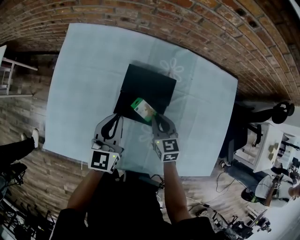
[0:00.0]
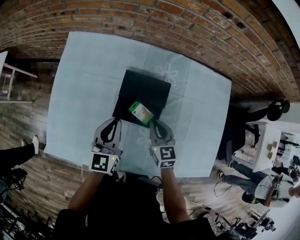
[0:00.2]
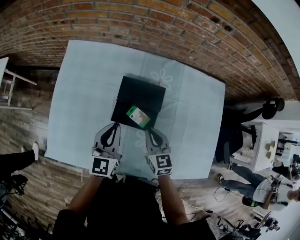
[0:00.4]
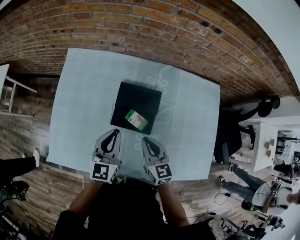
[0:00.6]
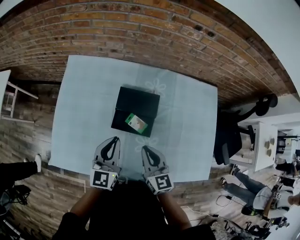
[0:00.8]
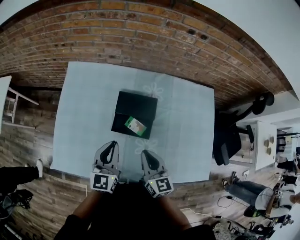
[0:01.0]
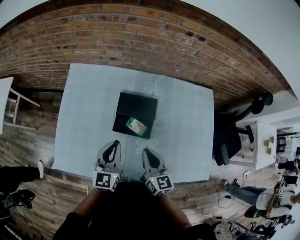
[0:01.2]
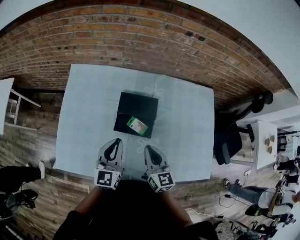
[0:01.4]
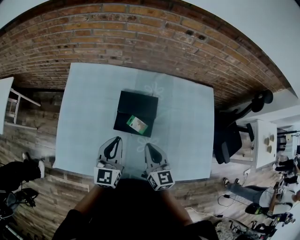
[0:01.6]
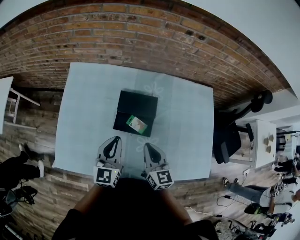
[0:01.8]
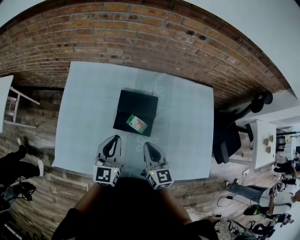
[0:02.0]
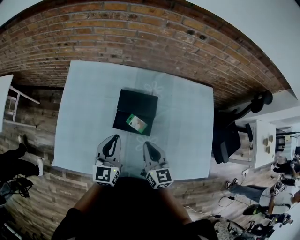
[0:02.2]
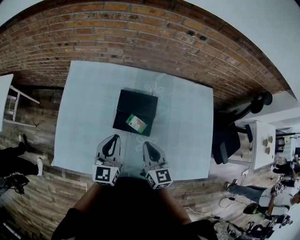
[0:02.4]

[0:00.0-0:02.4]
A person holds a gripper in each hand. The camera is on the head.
0.0 to 1.2 s: The left gripper is displaced upward and backward by approximately 10 cm, while the right gripper goes approximately 20 cm upward and backward, and changes its angle by about 20 degrees.
1.2 to 2.4 s: The grippers make only small movements.

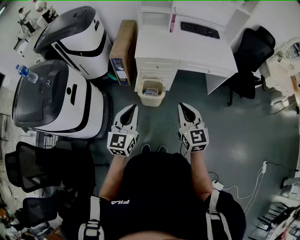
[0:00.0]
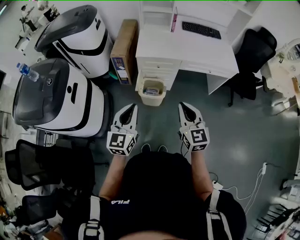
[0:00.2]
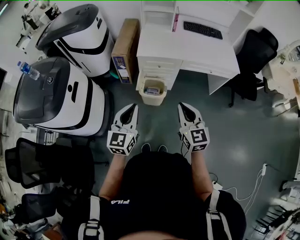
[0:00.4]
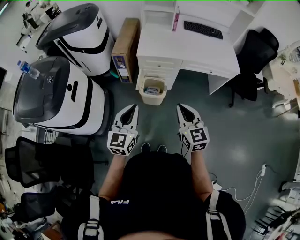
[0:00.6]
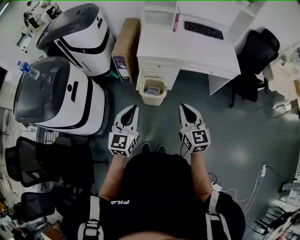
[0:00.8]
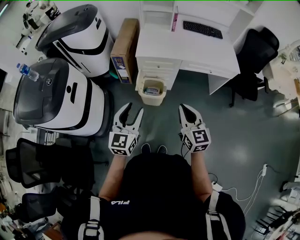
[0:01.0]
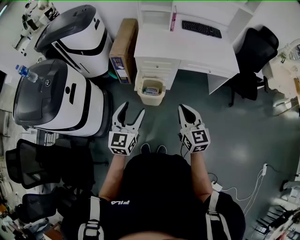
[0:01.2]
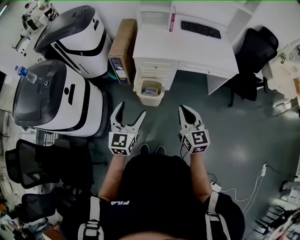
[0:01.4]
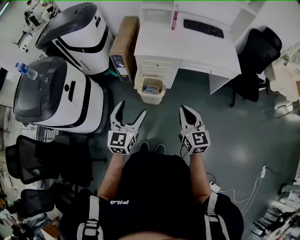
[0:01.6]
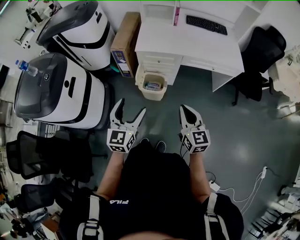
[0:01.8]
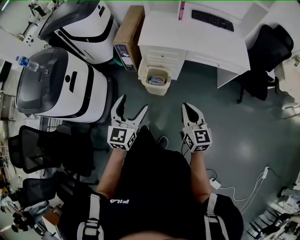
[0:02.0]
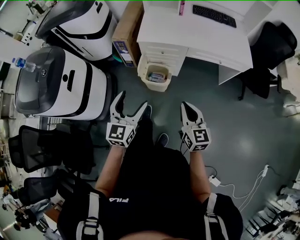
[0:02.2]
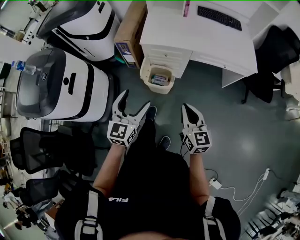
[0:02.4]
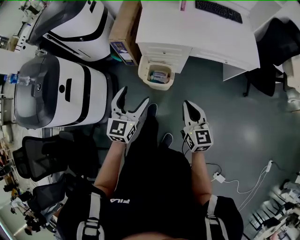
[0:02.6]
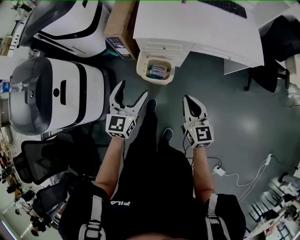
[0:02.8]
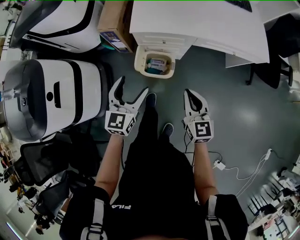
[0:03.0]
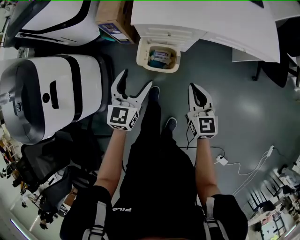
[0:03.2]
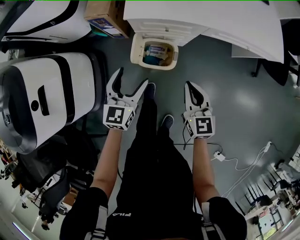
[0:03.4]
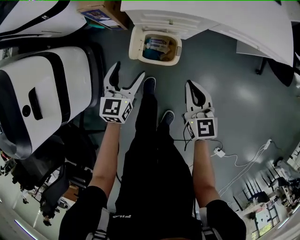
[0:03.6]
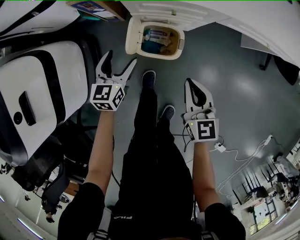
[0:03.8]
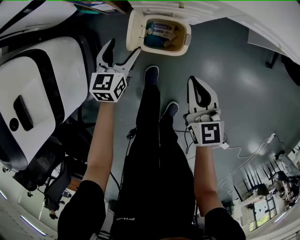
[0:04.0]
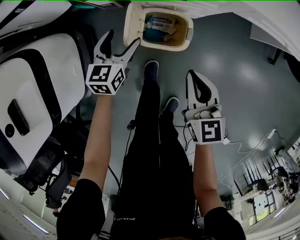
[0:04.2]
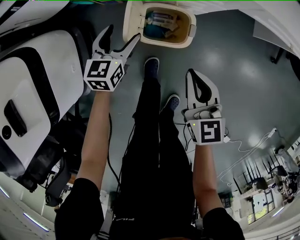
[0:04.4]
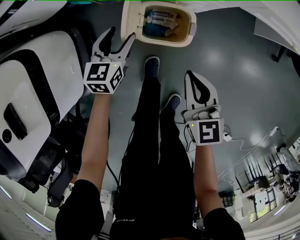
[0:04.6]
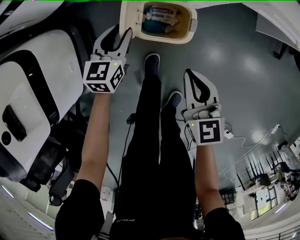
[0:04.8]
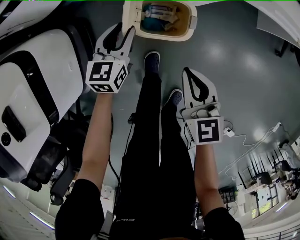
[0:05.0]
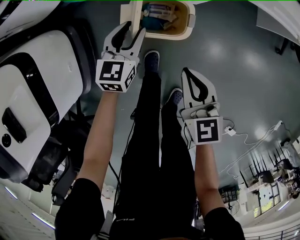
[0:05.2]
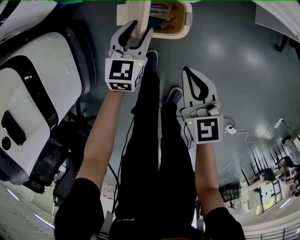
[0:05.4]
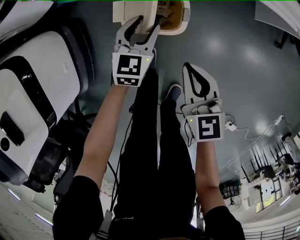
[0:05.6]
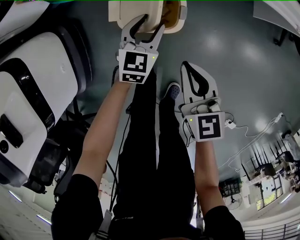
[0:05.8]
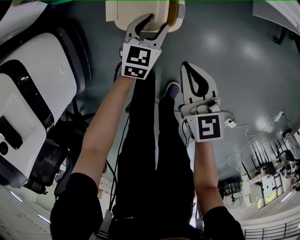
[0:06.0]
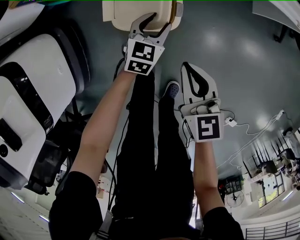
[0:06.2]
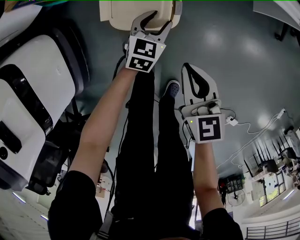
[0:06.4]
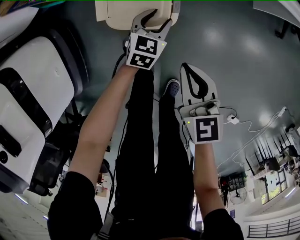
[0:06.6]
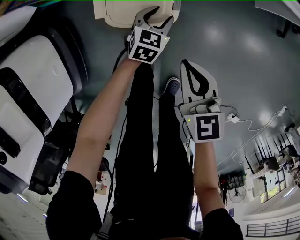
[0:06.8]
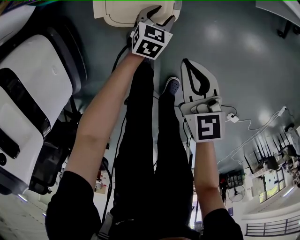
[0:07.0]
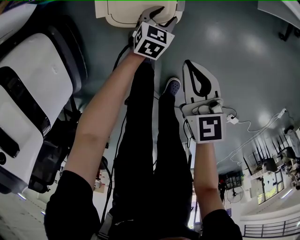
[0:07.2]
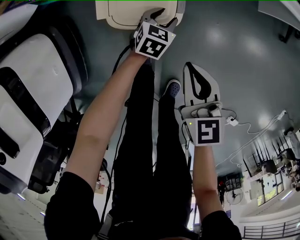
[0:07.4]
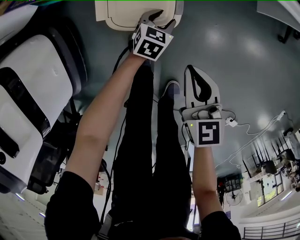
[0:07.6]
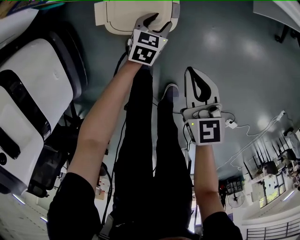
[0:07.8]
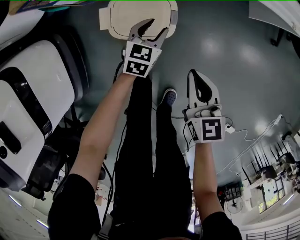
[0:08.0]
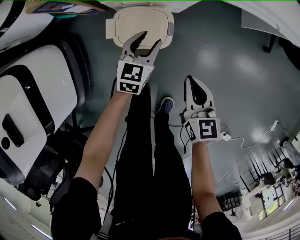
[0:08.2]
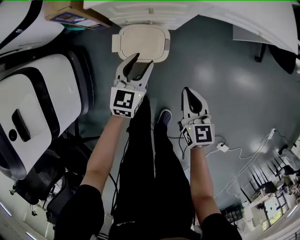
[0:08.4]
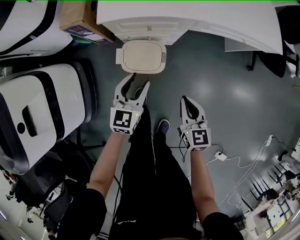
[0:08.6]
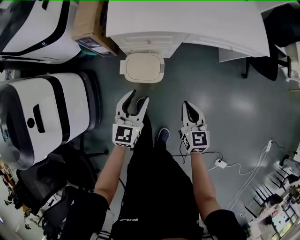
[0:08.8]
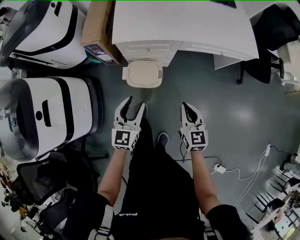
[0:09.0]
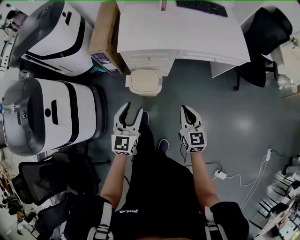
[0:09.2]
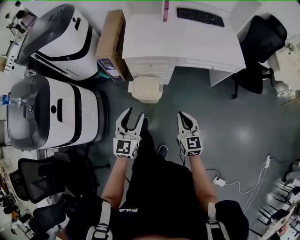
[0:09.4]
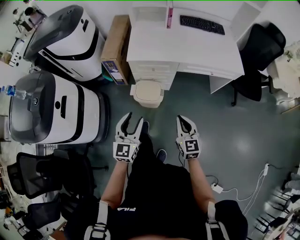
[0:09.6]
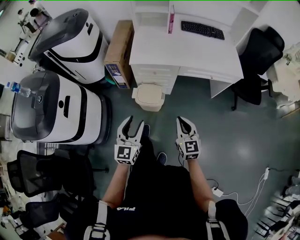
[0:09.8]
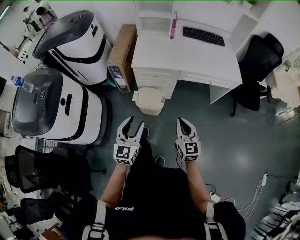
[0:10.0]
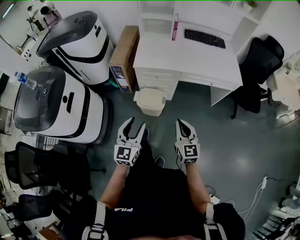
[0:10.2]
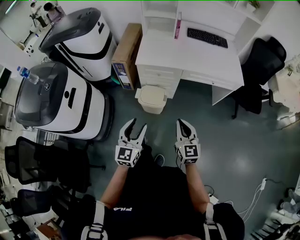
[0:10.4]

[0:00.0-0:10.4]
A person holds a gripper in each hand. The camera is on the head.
0.0 to 1.4 s: The left gripper opens its fingers.
1.4 to 3.0 s: The grippers both shift forward and downward by approximately 30 cm.
3.0 to 4.4 s: Both grippers travel together downward, some 35 cm.
4.4 to 6.0 s: The left gripper is displaced to the right and downward by about 20 cm, and closes its fingers. Meanwhile the right gripper heads downward, covering roughly 5 cm.
6.0 to 7.4 s: The left gripper shifts some 15 cm downward and to the right. Meanwhile the right gripper is displaced downward by roughly 5 cm.
7.4 to 9.0 s: The right gripper is displaced upward by some 30 cm. Meanwhile the left gripper heads upward, covering roughly 50 cm, and tilts its fingers roughly 30 degrees upward.
9.0 to 10.4 s: The right gripper goes approximately 25 cm upward and backward. Meanwhile the left gripper goes roughly 25 cm backward and upward.

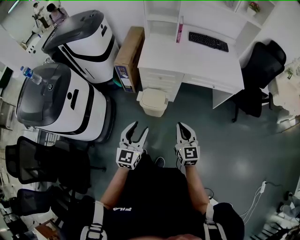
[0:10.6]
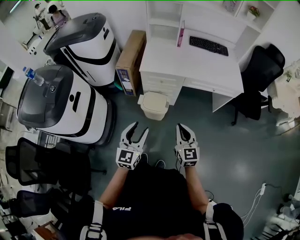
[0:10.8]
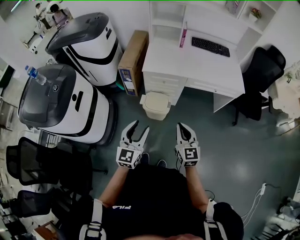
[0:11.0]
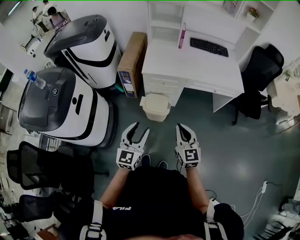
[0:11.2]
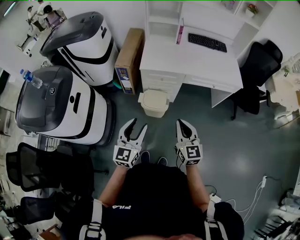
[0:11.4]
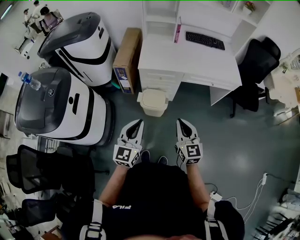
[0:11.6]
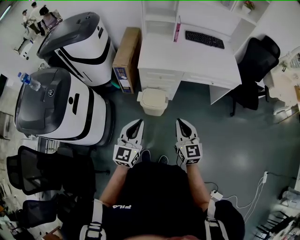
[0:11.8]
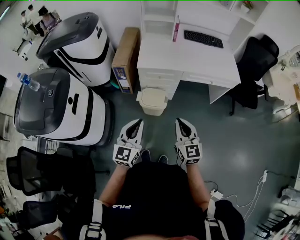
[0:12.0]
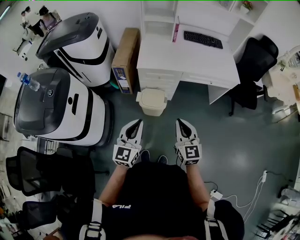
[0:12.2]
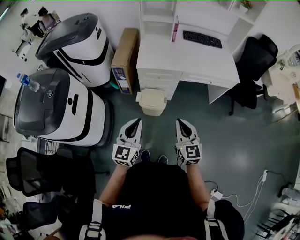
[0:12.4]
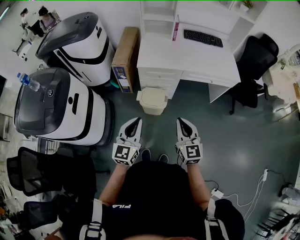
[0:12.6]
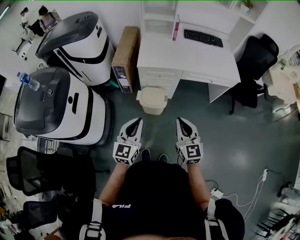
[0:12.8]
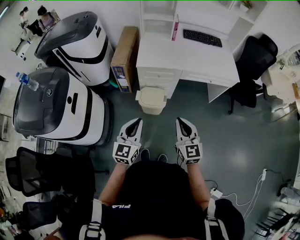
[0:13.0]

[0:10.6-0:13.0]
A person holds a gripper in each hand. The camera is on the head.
10.6 to 11.8 s: The two grippers go approximately 5 cm to the left. The left gripper closes up.
11.8 to 13.0 s: The grippers move only a little.

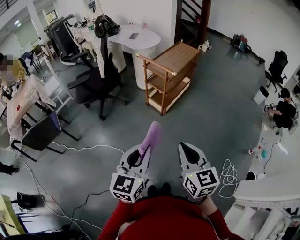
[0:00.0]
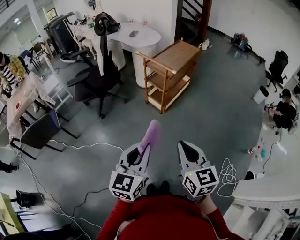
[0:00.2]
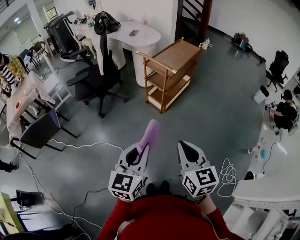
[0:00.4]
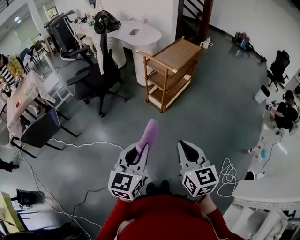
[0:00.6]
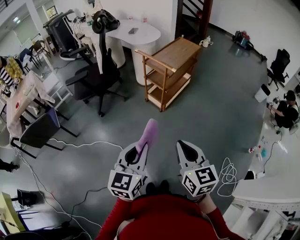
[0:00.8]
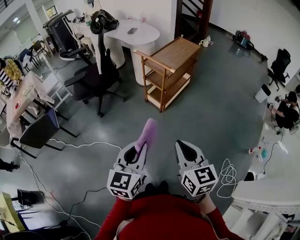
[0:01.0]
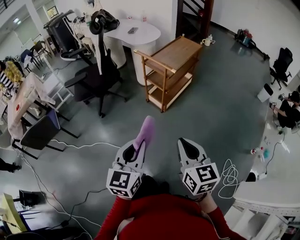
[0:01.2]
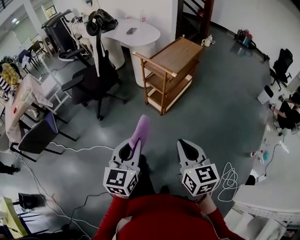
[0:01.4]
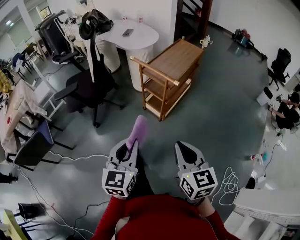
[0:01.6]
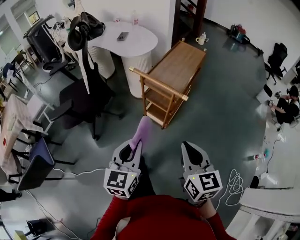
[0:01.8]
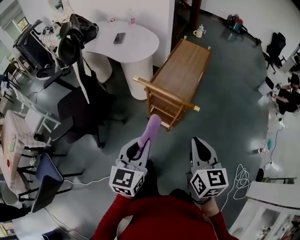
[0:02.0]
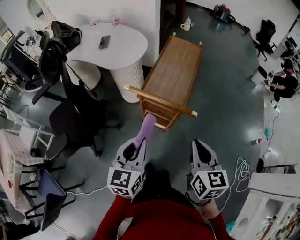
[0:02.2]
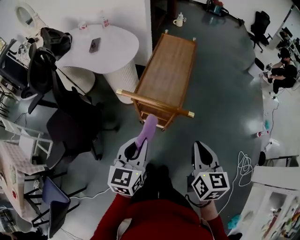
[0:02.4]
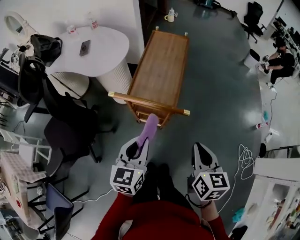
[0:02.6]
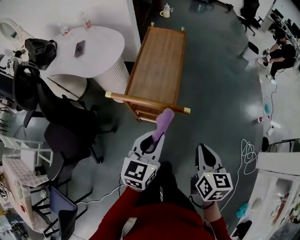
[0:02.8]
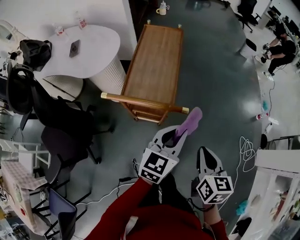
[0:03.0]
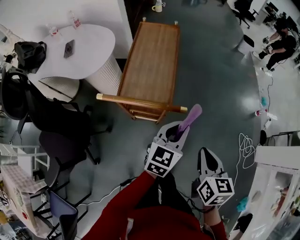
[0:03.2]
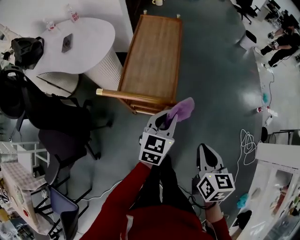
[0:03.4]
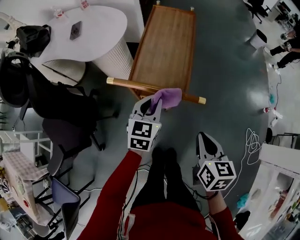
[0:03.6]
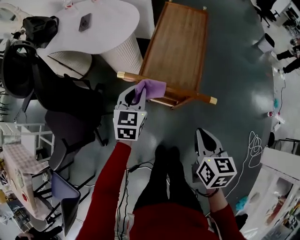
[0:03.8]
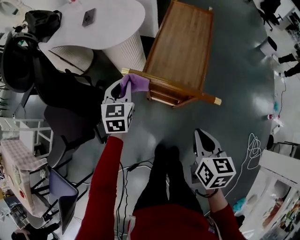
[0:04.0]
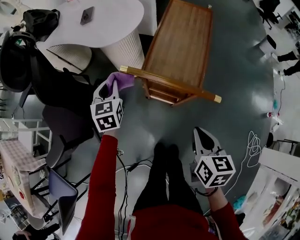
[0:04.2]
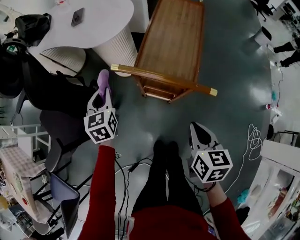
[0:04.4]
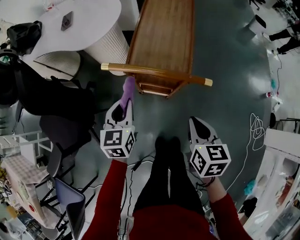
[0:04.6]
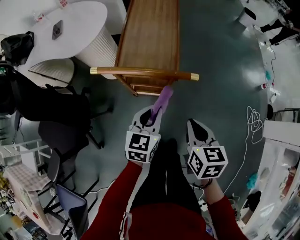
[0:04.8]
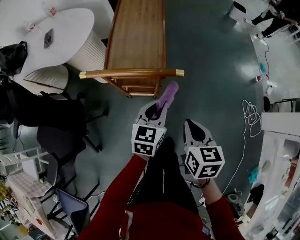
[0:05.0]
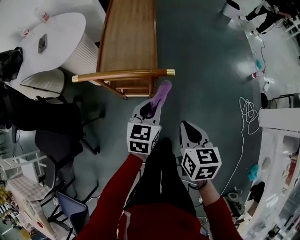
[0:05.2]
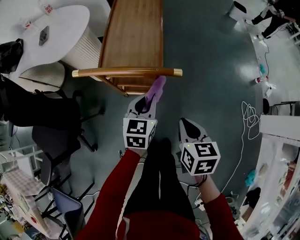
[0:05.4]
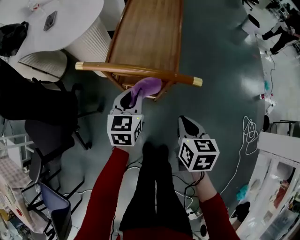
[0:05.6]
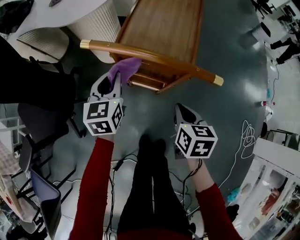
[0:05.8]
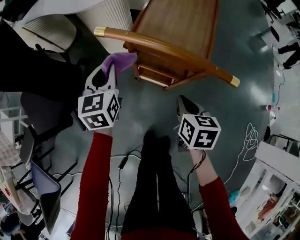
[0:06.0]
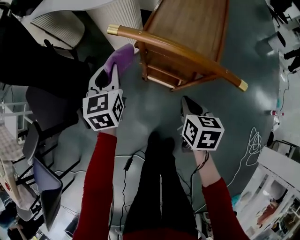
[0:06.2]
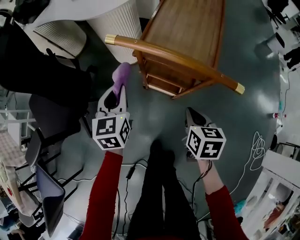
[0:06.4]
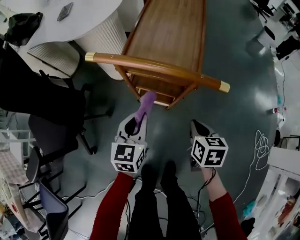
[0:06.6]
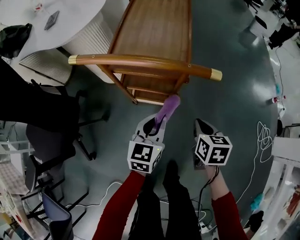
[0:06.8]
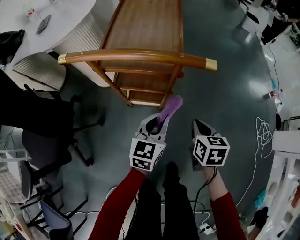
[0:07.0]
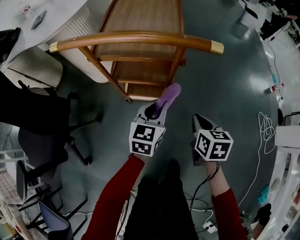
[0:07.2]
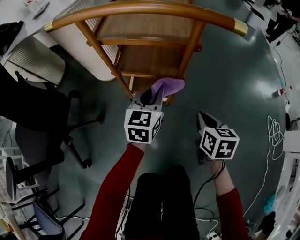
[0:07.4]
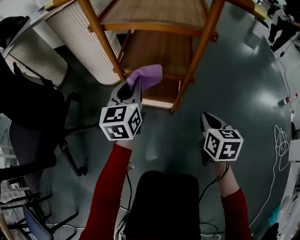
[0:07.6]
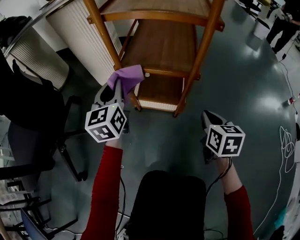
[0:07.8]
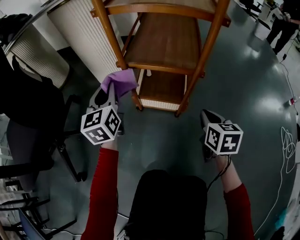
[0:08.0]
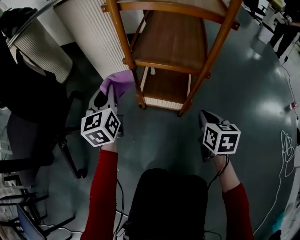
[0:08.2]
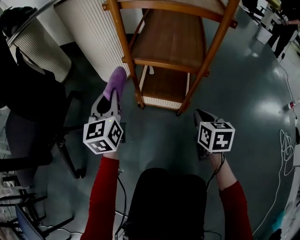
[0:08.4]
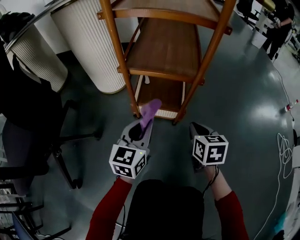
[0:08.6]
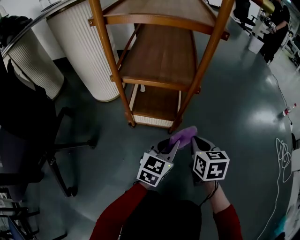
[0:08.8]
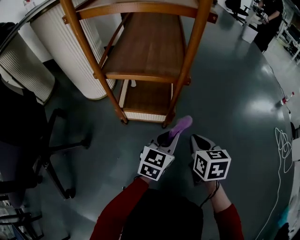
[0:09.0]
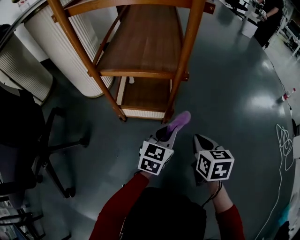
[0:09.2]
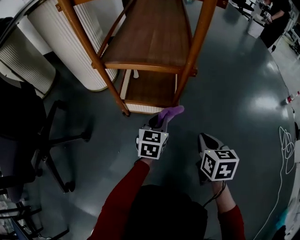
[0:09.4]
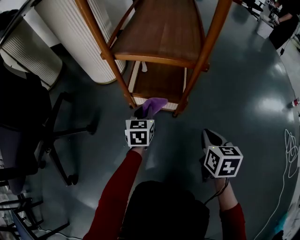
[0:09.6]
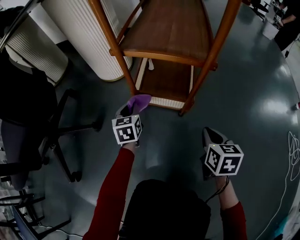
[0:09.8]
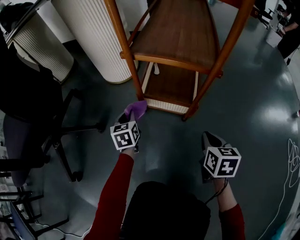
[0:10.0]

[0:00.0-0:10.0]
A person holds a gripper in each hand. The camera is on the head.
0.0 to 1.4 s: Both grippers move forward, approximately 10 cm.
1.4 to 2.8 s: The right gripper changes place by some 25 cm, and turns by about 40 degrees. Meanwhile the left gripper changes place by approximately 35 cm, and rotates some 40 degrees.
2.8 to 4.2 s: The right gripper ends up about 10 cm from where it was. Meanwhile the left gripper ends up about 30 cm from where it was, and changes its angle by about 40 degrees.
4.2 to 5.8 s: The right gripper moves downward, roughly 15 cm.
5.8 to 7.2 s: The left gripper moves roughly 25 cm, and changes its angle by some 30 degrees. The right gripper is displaced downward by roughly 15 cm.
7.2 to 8.6 s: The grippers both shift downward and to the left by approximately 20 cm.
8.6 to 10.0 s: The left gripper shifts about 15 cm downward, and swivels about 30 degrees, while the right gripper travels downward by about 5 cm.
